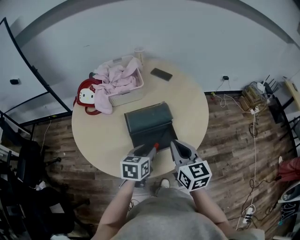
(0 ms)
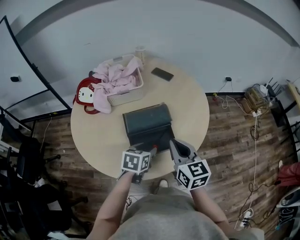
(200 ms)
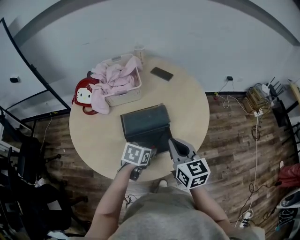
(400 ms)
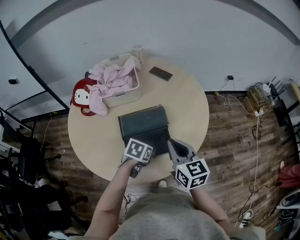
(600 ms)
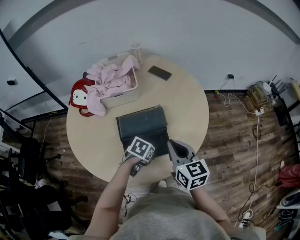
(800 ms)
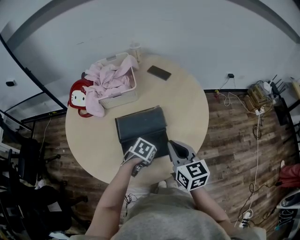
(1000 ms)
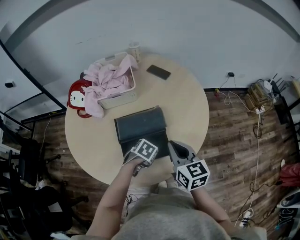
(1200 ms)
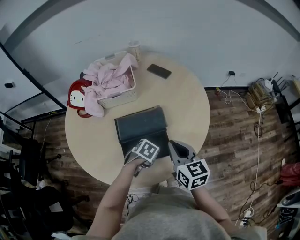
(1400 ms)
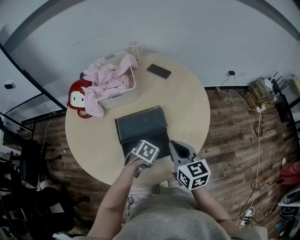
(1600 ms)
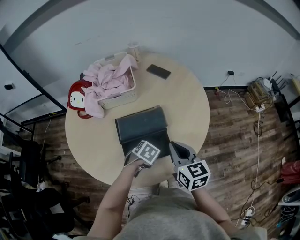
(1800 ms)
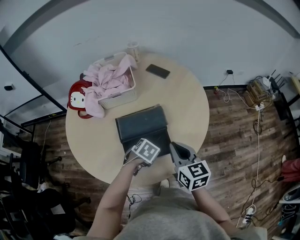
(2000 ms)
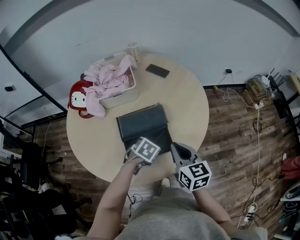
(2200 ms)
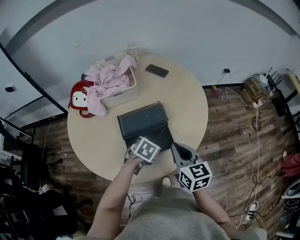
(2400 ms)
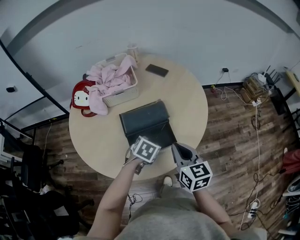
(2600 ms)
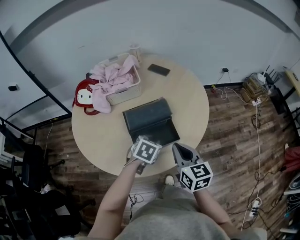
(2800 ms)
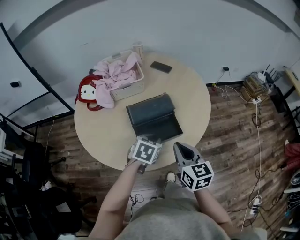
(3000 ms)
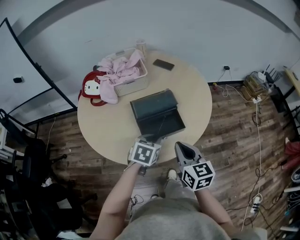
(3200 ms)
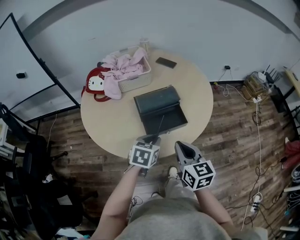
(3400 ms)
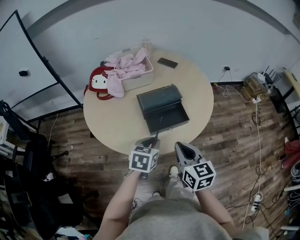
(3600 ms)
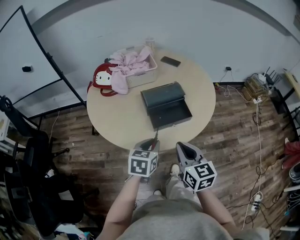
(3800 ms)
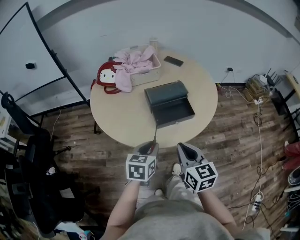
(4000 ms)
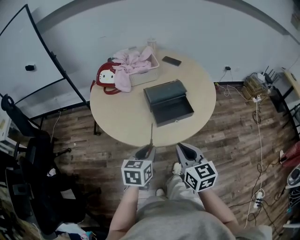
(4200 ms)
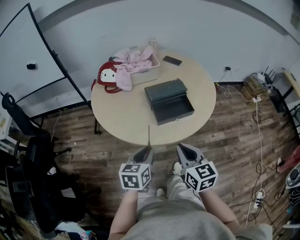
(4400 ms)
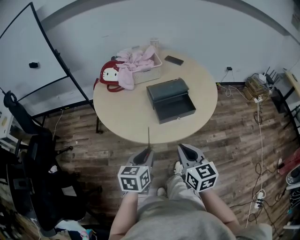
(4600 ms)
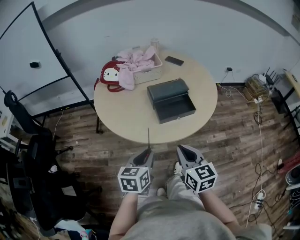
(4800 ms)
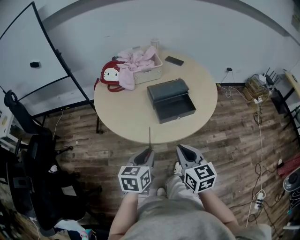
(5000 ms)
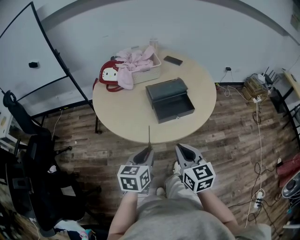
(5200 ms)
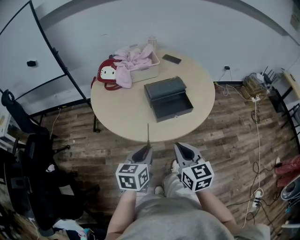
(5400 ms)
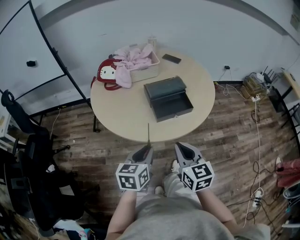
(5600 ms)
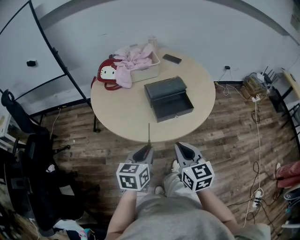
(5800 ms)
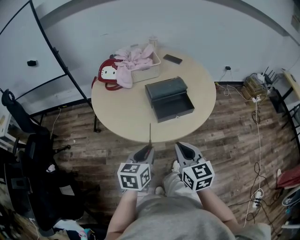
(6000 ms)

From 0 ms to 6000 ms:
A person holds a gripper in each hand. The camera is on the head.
From 0 ms to 1600 ms: The right gripper heads forward, covering approximately 10 cm. Meanwhile the left gripper shifts about 15 cm downward and forward, and tilts its fingers roughly 40 degrees downward.
From 1600 ms to 3000 ms: The left gripper moves upward and backward, approximately 15 cm, and turns by about 20 degrees. The right gripper travels backward by some 10 cm.
From 3000 ms to 4400 ms: The grippers both shift backward and to the left by approximately 20 cm. The left gripper rotates roughly 30 degrees.
From 4400 ms to 6000 ms: The grippers make only small movements.

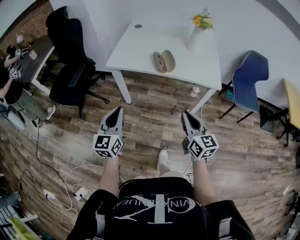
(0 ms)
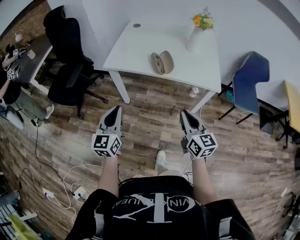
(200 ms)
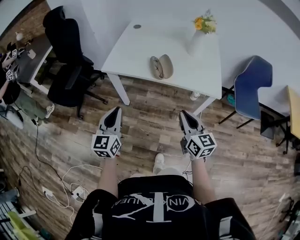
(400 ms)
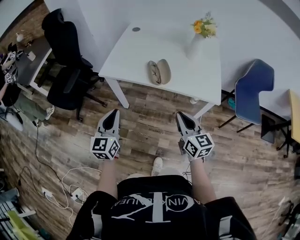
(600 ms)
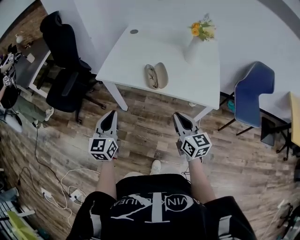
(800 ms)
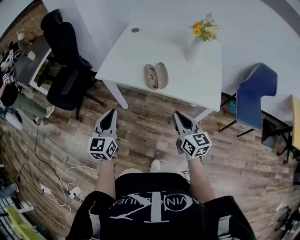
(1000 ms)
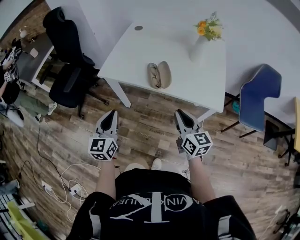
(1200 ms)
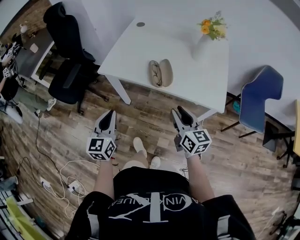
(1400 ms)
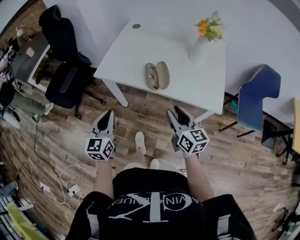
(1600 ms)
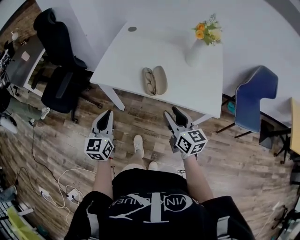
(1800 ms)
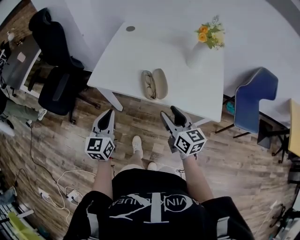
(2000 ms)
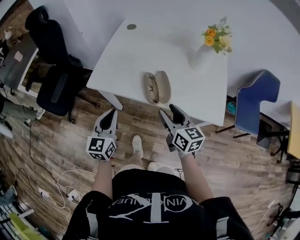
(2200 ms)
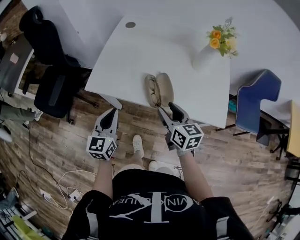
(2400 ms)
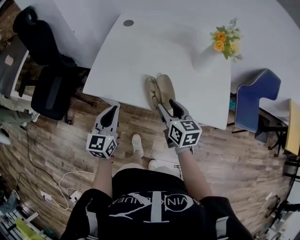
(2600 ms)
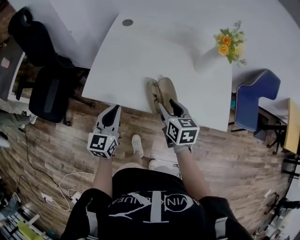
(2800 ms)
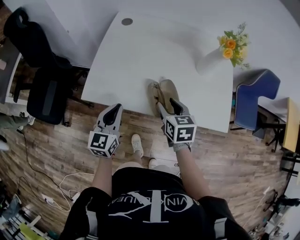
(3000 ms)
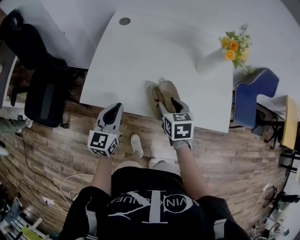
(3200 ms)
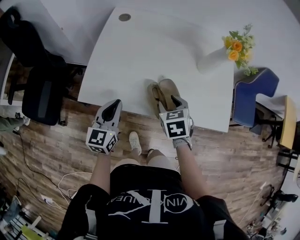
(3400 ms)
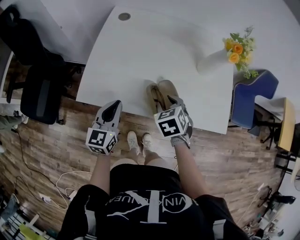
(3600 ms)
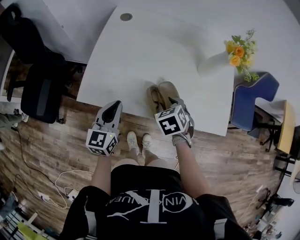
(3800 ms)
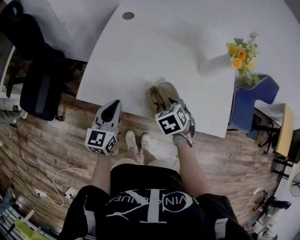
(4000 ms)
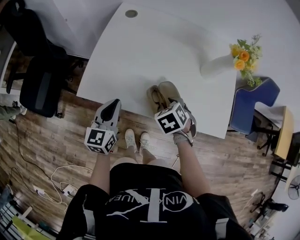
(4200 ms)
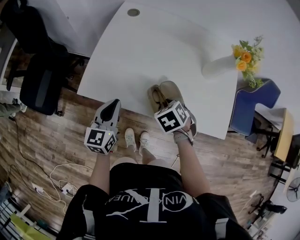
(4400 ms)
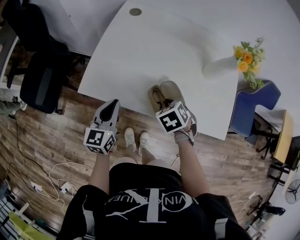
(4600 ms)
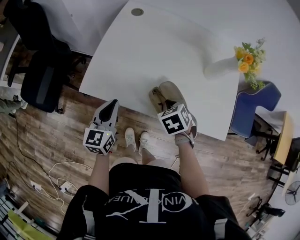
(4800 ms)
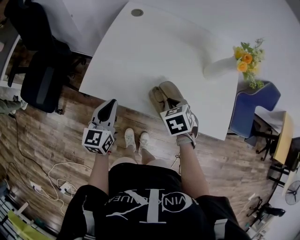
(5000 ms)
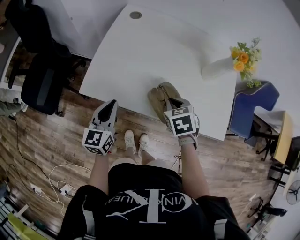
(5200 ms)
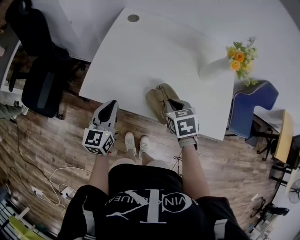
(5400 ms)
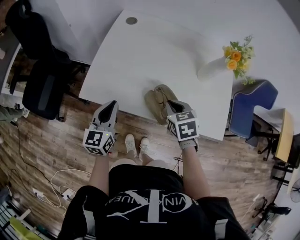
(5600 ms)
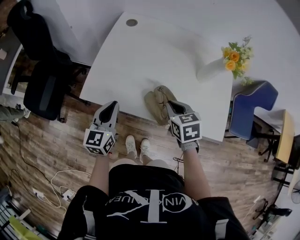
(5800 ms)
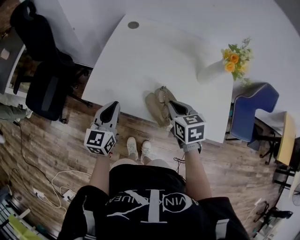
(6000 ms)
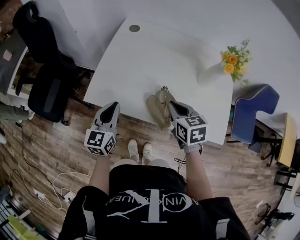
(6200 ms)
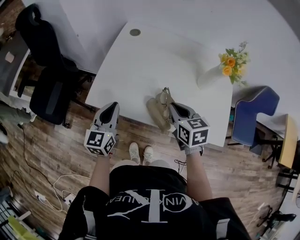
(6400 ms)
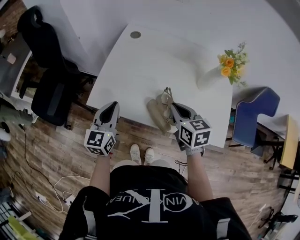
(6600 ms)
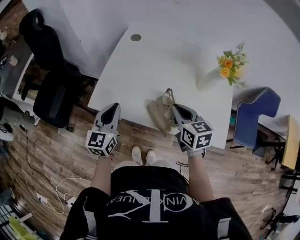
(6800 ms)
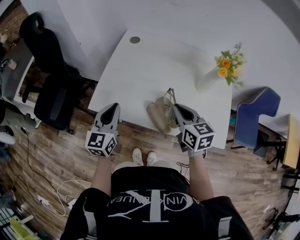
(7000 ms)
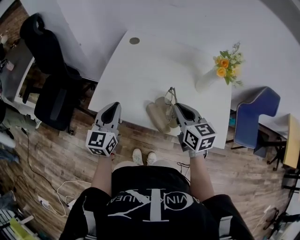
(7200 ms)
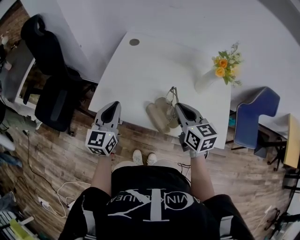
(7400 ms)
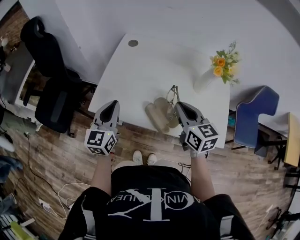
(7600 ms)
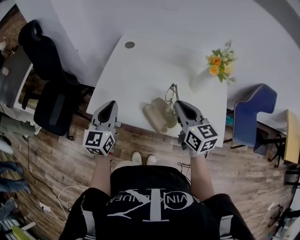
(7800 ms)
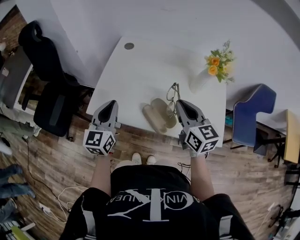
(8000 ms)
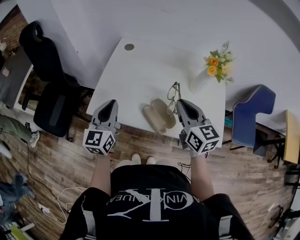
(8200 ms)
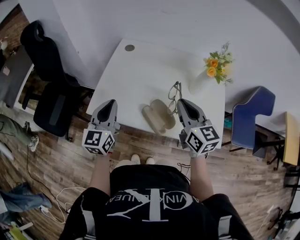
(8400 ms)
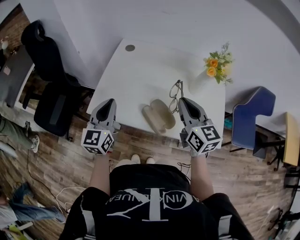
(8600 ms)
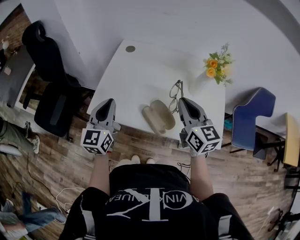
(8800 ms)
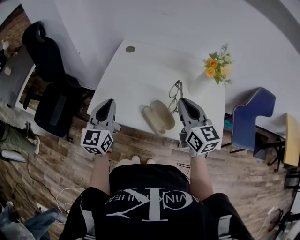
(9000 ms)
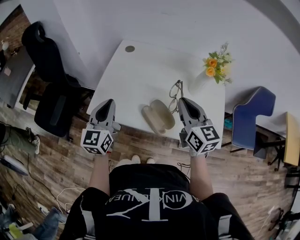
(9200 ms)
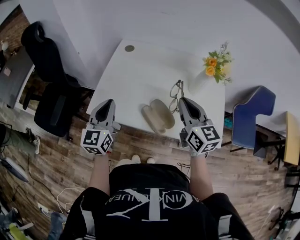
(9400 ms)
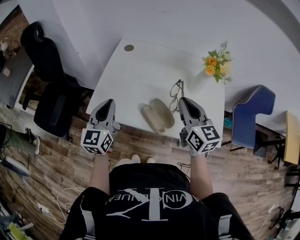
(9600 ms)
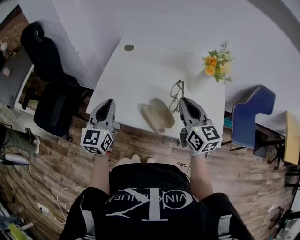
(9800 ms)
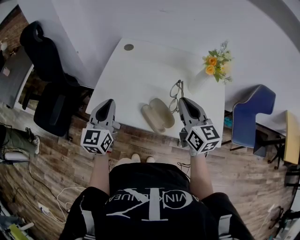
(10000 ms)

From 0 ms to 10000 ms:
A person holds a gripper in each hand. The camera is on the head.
From 0 ms to 1400 ms: The right gripper heads forward, covering some 20 cm; the left gripper heads forward and to the right, covering approximately 15 cm.
From 1400 ms to 2800 ms: Both grippers move forward, roughly 20 cm. The right gripper swivels roughly 30 degrees.
From 2800 ms to 4200 ms: The right gripper travels downward by some 5 cm, and tilts its fingers some 40 degrees downward. Meanwhile the left gripper changes place by about 5 cm.
From 4200 ms to 5800 ms: The right gripper shifts approximately 5 cm upward, swivels approximately 30 degrees, and closes its fingers.
From 5800 ms to 7200 ms: Both grippers move upward, some 10 cm. The right gripper rotates some 30 degrees.
From 7200 ms to 8600 ms: The right gripper is displaced upward by about 10 cm.
From 8600 ms to 10000 ms: Neither gripper changes place.

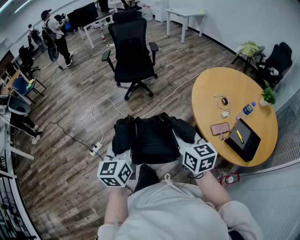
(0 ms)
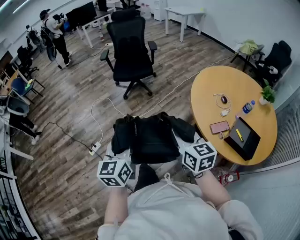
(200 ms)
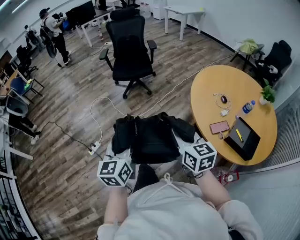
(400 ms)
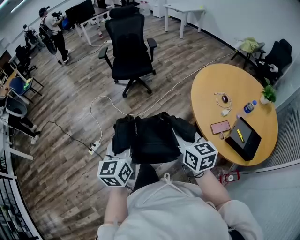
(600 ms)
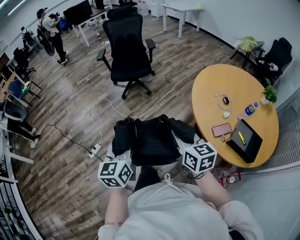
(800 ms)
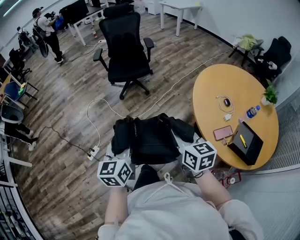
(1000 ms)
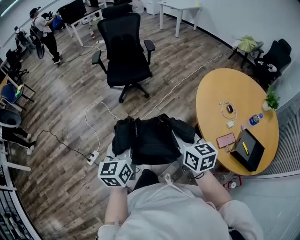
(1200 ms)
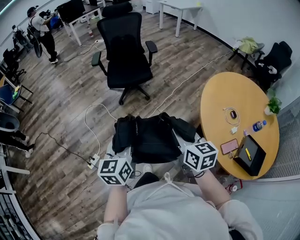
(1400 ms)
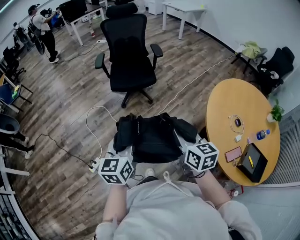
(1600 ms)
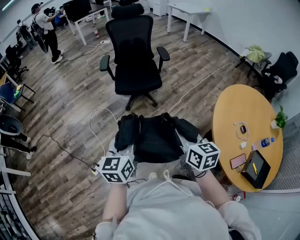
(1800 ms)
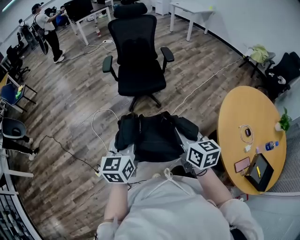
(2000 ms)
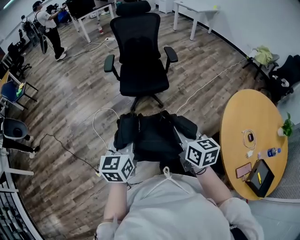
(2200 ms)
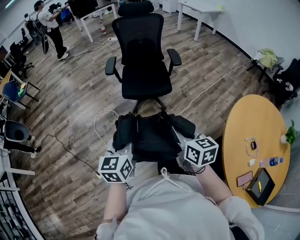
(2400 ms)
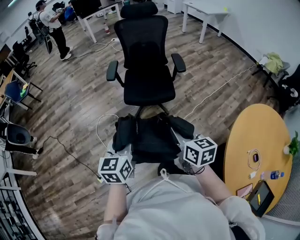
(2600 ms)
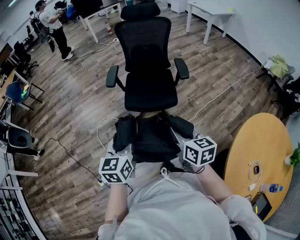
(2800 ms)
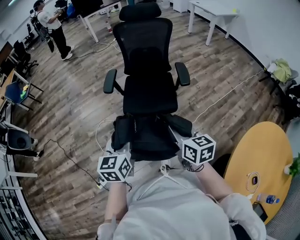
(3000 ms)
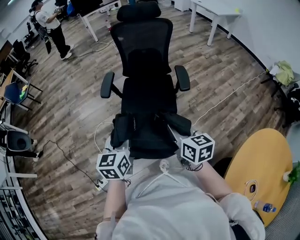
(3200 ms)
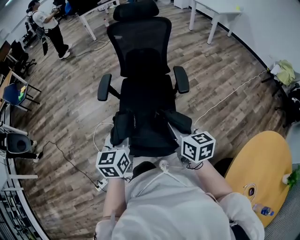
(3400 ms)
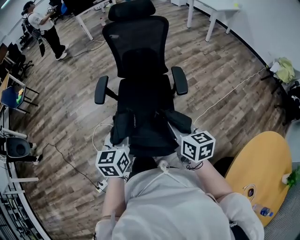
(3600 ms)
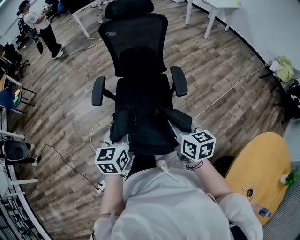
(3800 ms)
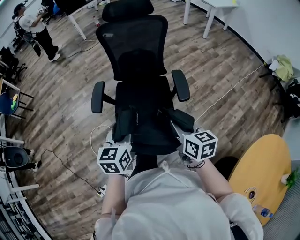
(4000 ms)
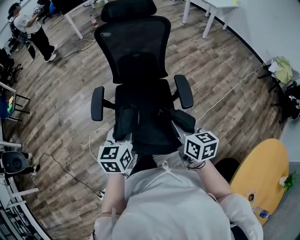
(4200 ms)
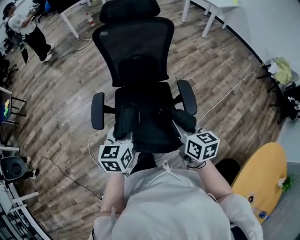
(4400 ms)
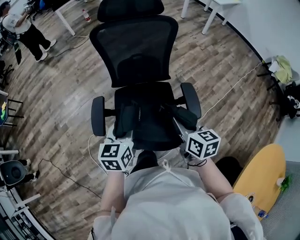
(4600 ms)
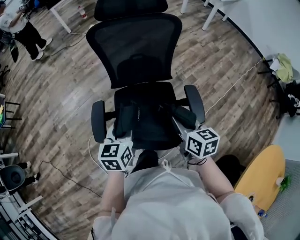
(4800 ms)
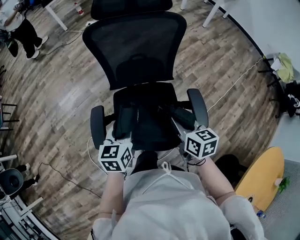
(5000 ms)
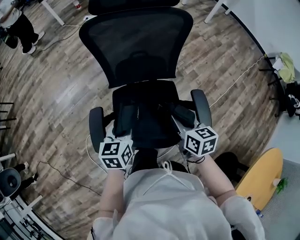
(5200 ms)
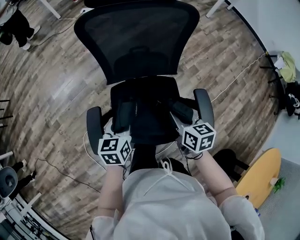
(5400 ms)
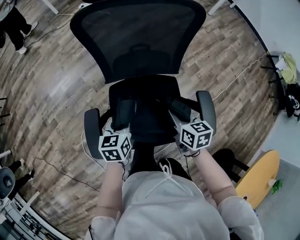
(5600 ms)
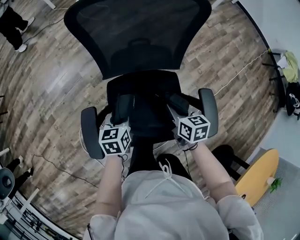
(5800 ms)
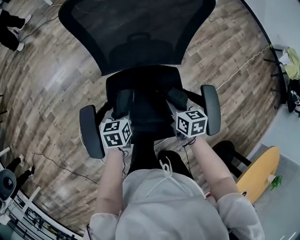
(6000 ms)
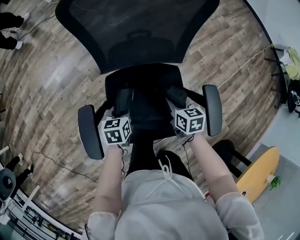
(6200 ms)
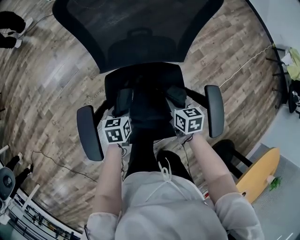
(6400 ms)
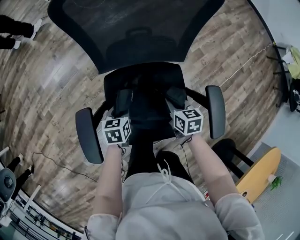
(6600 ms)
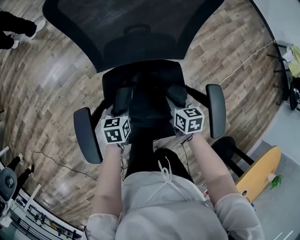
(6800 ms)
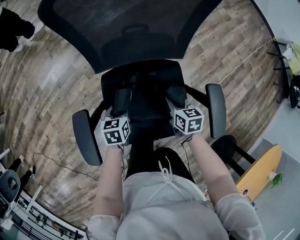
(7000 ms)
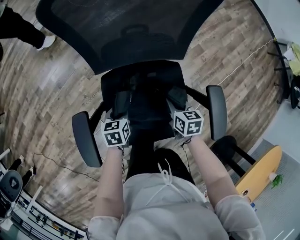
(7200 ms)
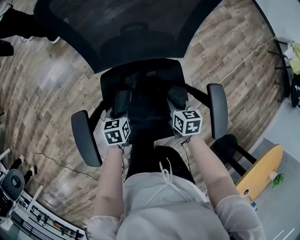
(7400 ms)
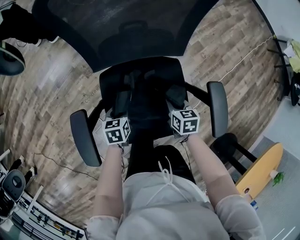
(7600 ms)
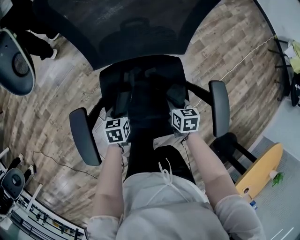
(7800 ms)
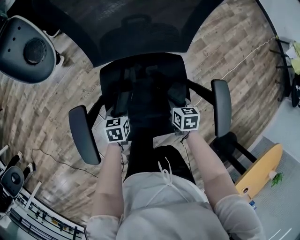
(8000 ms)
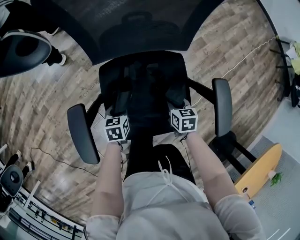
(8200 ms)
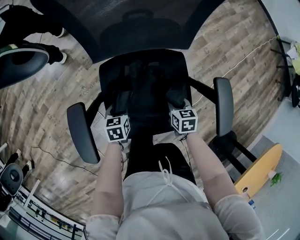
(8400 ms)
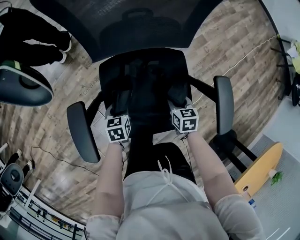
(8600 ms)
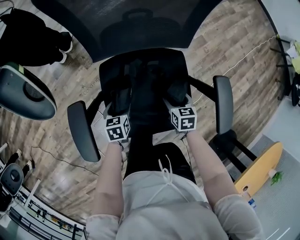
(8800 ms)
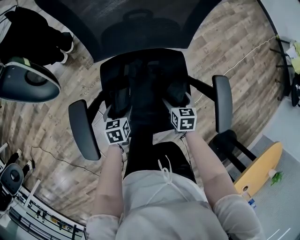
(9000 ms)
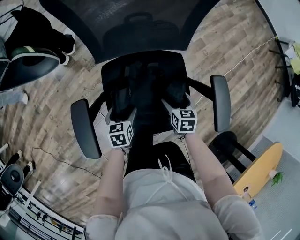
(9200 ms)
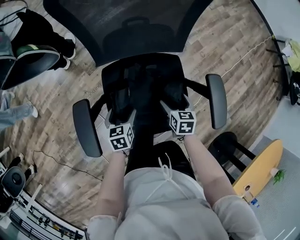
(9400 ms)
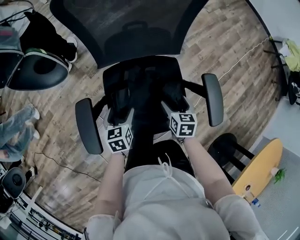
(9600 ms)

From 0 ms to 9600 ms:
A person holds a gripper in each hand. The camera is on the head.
From 0 ms to 1600 ms: Both grippers travel together forward, some 30 cm.
From 1600 ms to 3200 ms: The pair of grippers is taken forward, approximately 50 cm.
From 3200 ms to 4800 ms: The pair of grippers is taken forward, some 40 cm.
From 4800 ms to 6400 ms: Both grippers travel together downward and forward, some 35 cm. The left gripper swivels roughly 30 degrees.
From 6400 ms to 8000 ms: Both grippers travel together downward, some 10 cm.
From 8000 ms to 9600 ms: Both grippers move upward, about 10 cm. The left gripper opens, while the right gripper opens its fingers.
